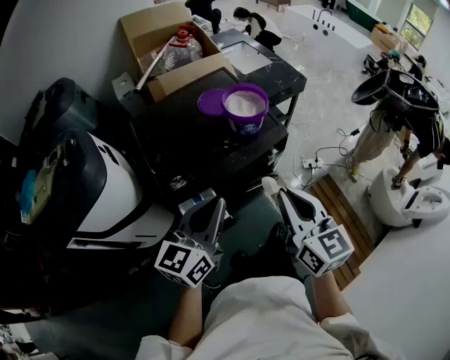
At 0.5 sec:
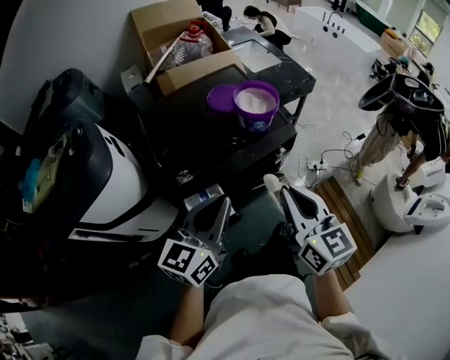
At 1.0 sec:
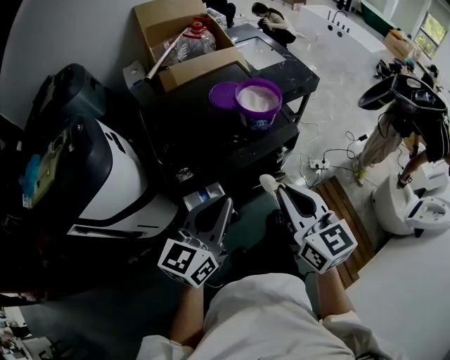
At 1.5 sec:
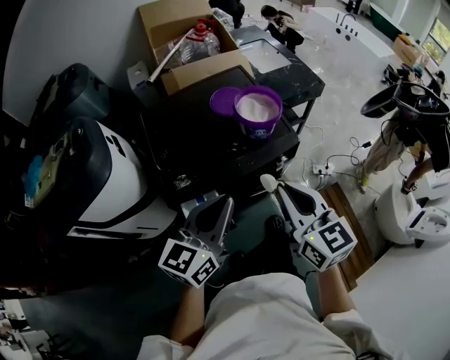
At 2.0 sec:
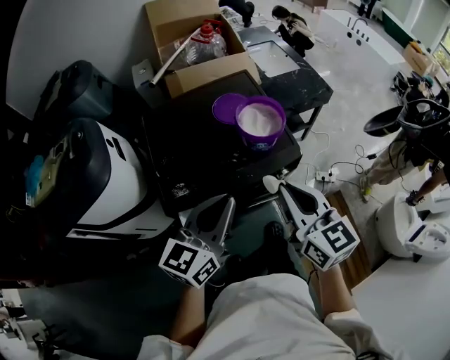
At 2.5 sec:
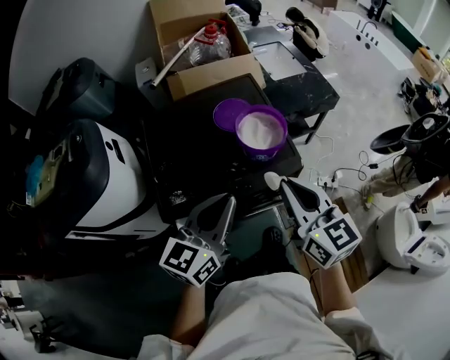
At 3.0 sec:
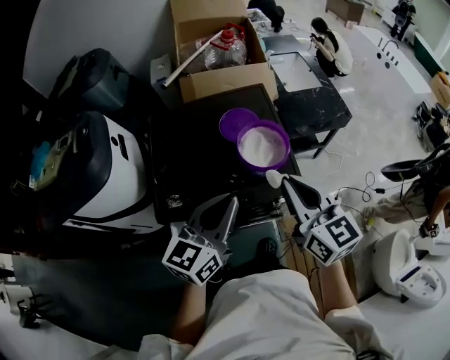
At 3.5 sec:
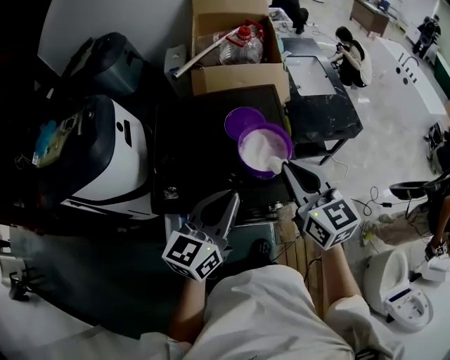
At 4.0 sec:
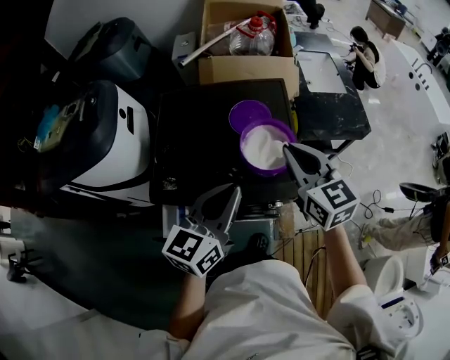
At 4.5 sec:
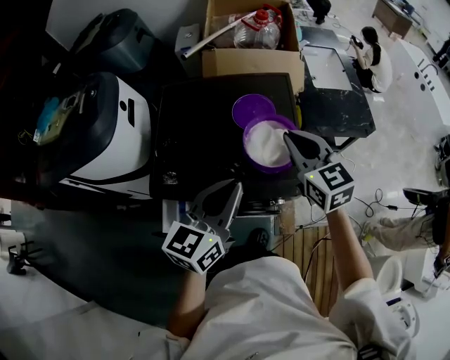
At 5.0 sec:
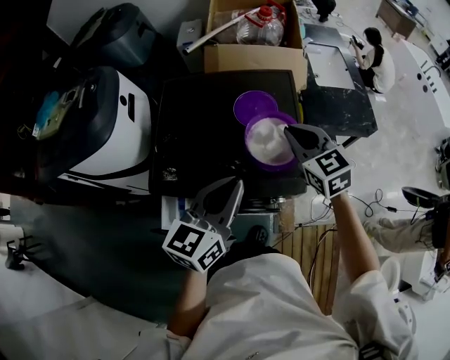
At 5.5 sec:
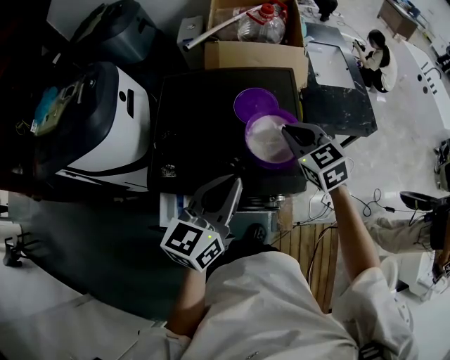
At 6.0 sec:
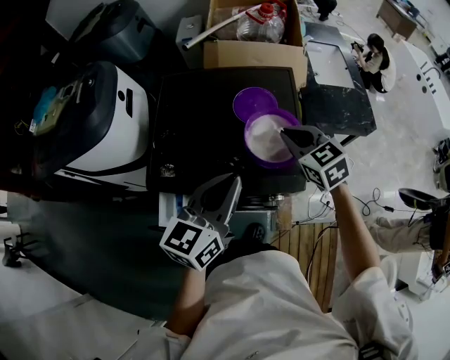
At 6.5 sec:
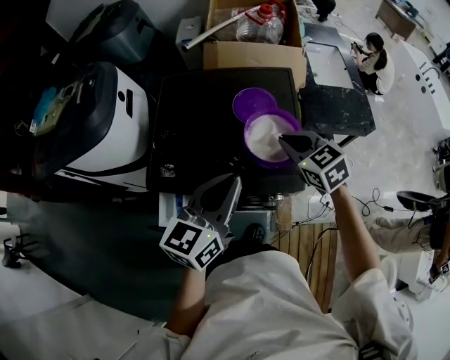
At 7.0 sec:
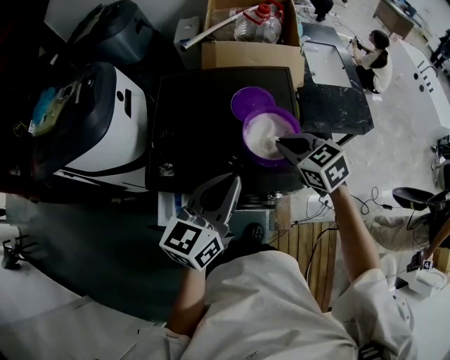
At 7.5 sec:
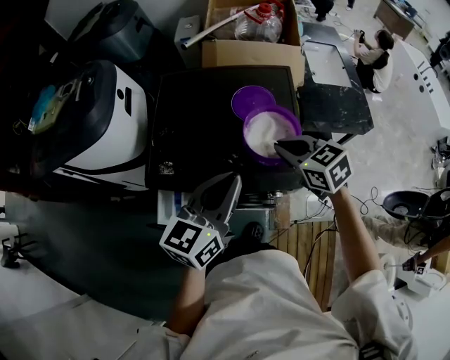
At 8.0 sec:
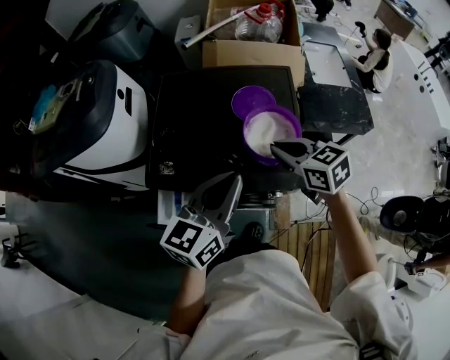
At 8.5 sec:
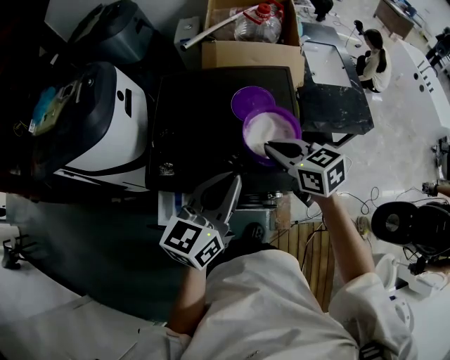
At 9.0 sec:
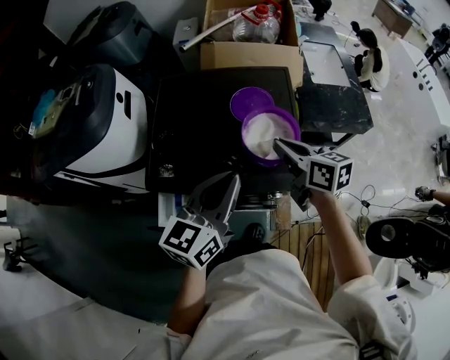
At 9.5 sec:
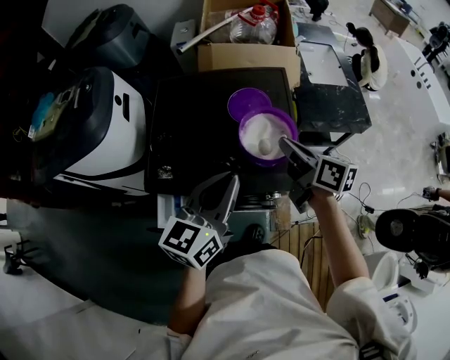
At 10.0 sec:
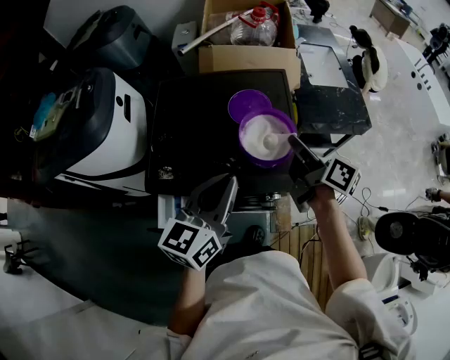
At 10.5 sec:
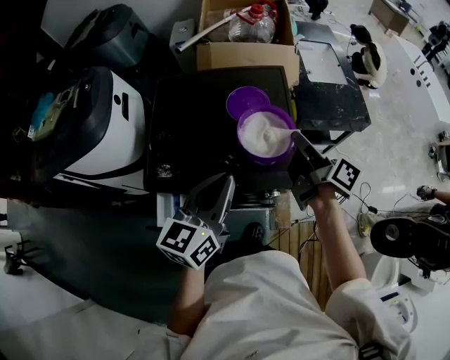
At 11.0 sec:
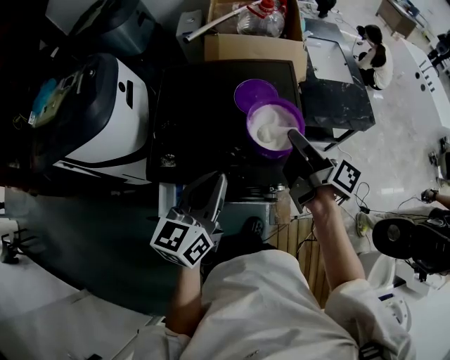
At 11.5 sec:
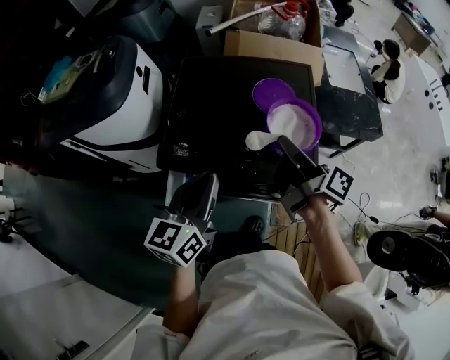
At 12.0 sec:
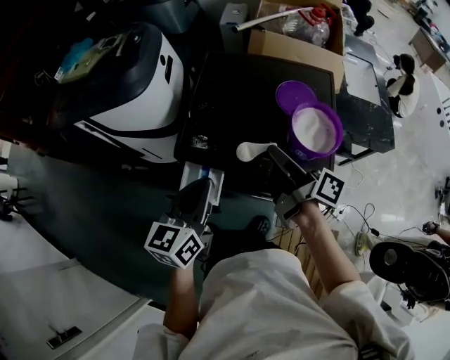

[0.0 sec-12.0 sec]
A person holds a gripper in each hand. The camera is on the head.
0.0 sec to 2.0 sec: Both grippers travel together forward, roughly 10 cm.
2.0 sec to 4.0 sec: The left gripper goes approximately 15 cm forward and to the right; the right gripper travels forward by about 20 cm, and rotates roughly 20 degrees.
4.0 sec to 6.0 sec: The right gripper goes some 10 cm downward and forward, and swivels roughly 30 degrees.
6.0 sec to 8.0 sec: The right gripper ends up roughly 5 cm from where it was.
8.0 sec to 10.0 sec: The right gripper travels to the right by about 10 cm, and twists roughly 50 degrees clockwise, seen from behind.
10.0 sec to 12.0 sec: Both grippers move to the left, approximately 20 cm. The right gripper swivels some 30 degrees.

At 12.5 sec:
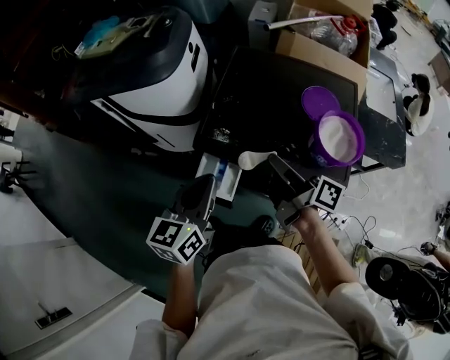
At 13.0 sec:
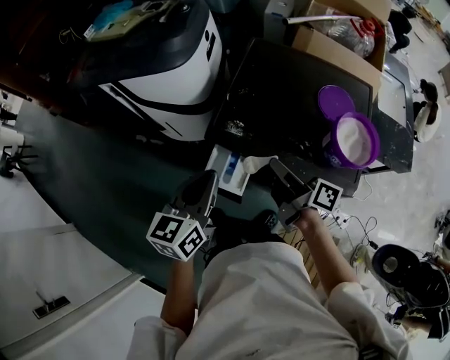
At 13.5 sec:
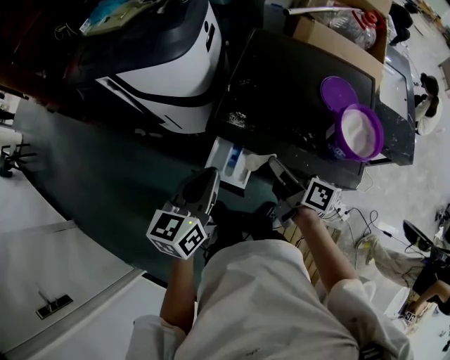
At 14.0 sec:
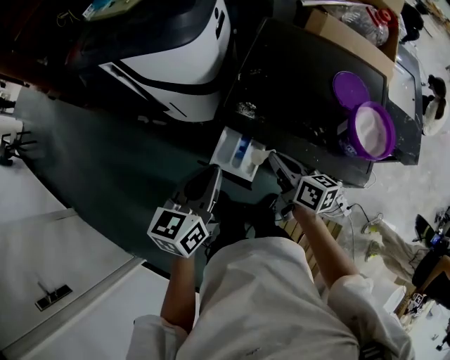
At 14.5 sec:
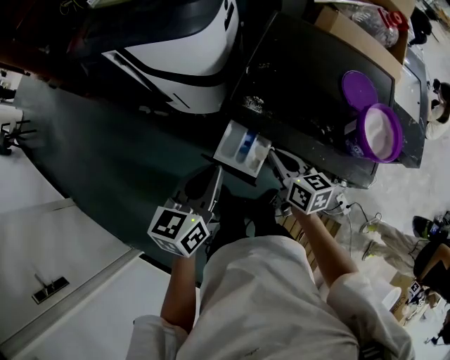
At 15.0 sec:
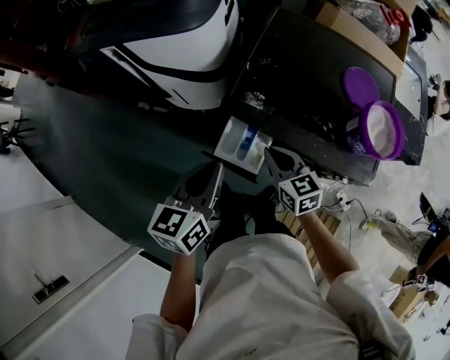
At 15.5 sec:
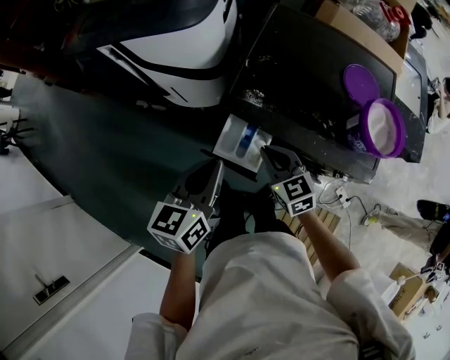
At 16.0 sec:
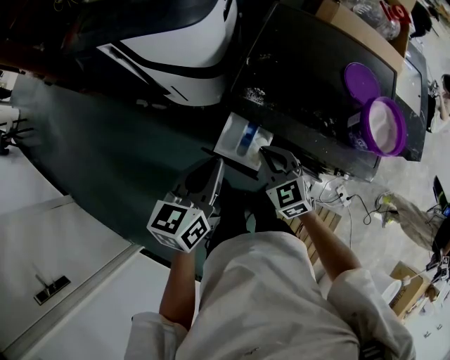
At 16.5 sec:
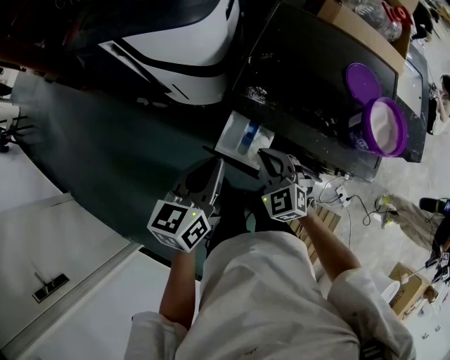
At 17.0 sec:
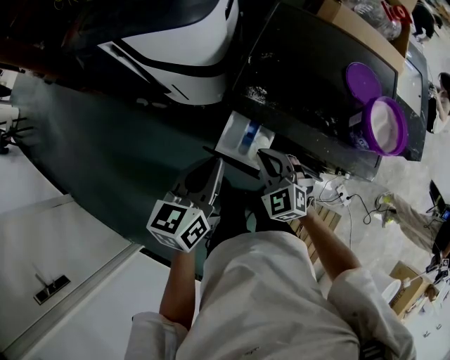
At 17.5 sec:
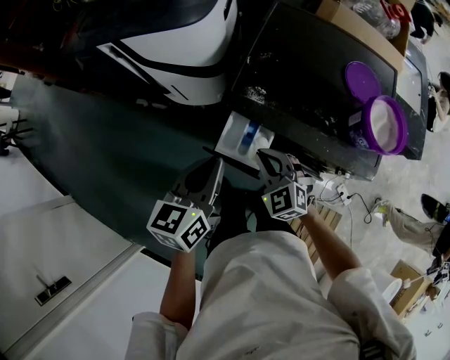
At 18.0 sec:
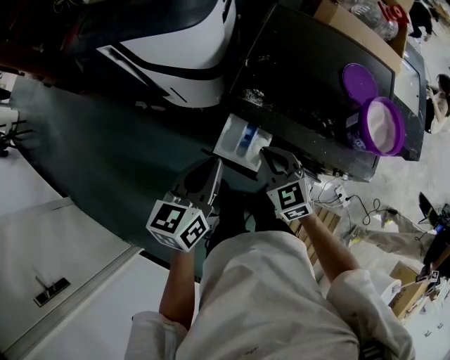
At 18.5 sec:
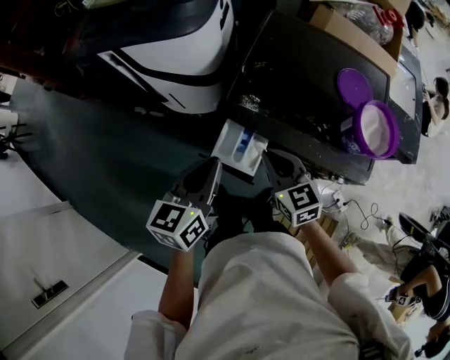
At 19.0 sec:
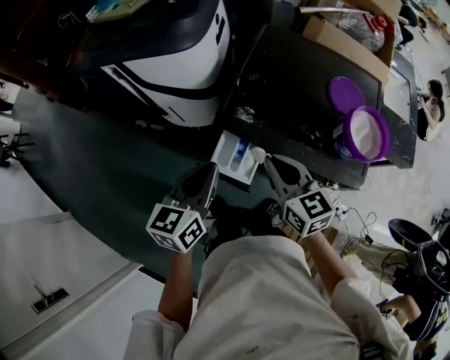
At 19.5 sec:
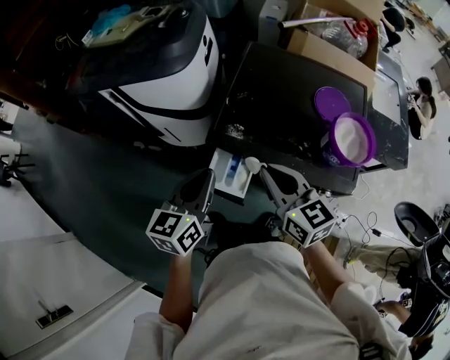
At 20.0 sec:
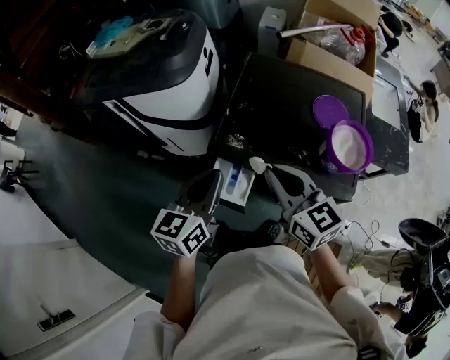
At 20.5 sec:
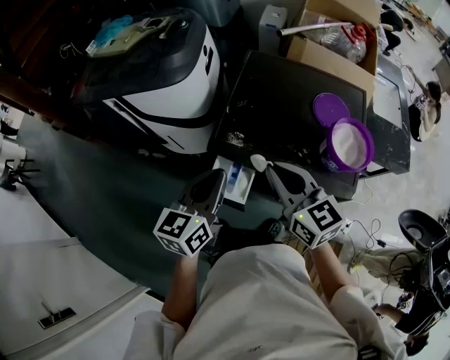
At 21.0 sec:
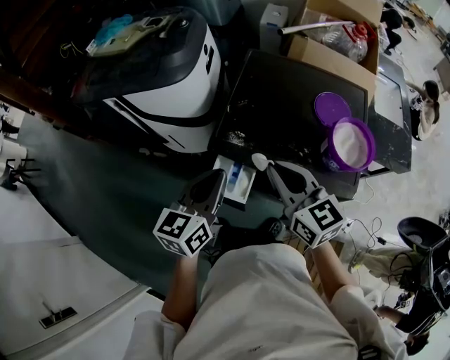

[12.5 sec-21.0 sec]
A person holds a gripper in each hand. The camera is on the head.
12.5 sec to 14.5 sec: The left gripper goes roughly 10 cm to the left. The right gripper moves downward and to the left, about 15 cm, and rolls counterclockwise, seen from behind, by about 40 degrees.
14.5 sec to 16.5 sec: The right gripper goes about 5 cm to the left, and rolls counterclockwise, seen from behind, by about 60 degrees.
16.5 sec to 19.0 sec: The right gripper shifts some 10 cm upward, and turns by some 40 degrees.
19.0 sec to 21.0 sec: The left gripper shifts by about 5 cm; the right gripper is displaced upward by roughly 10 cm.

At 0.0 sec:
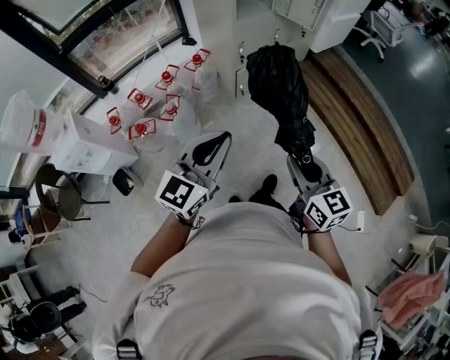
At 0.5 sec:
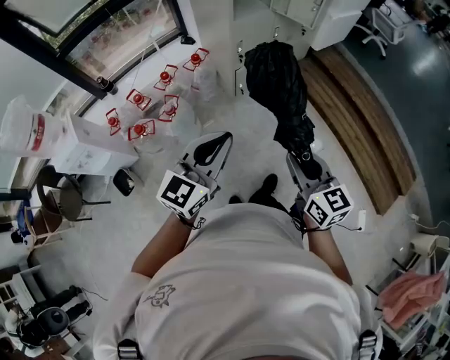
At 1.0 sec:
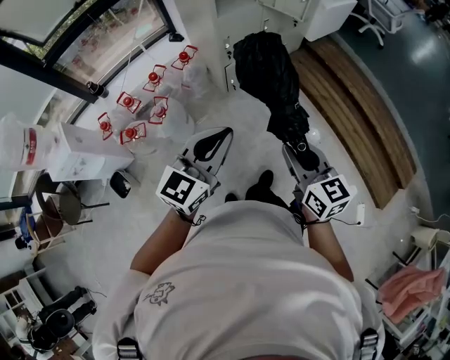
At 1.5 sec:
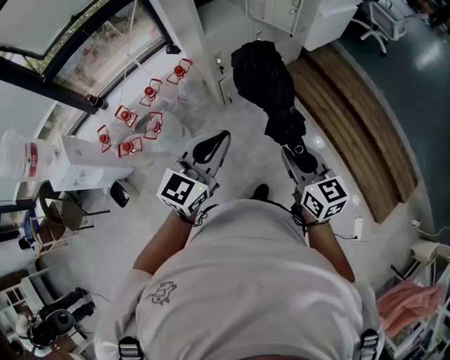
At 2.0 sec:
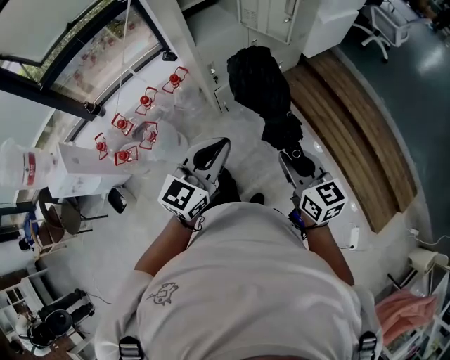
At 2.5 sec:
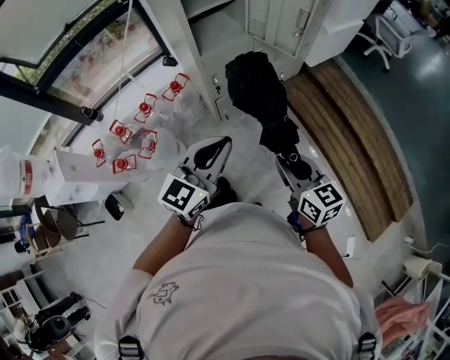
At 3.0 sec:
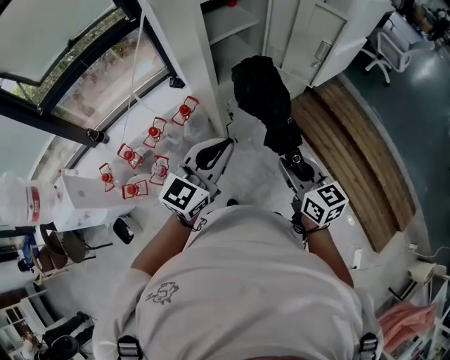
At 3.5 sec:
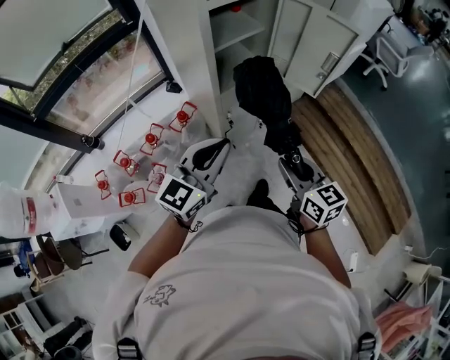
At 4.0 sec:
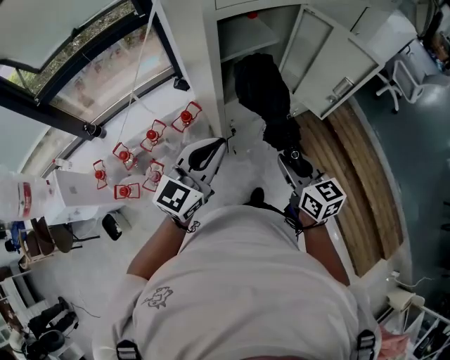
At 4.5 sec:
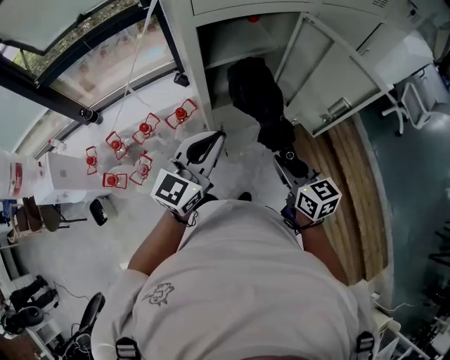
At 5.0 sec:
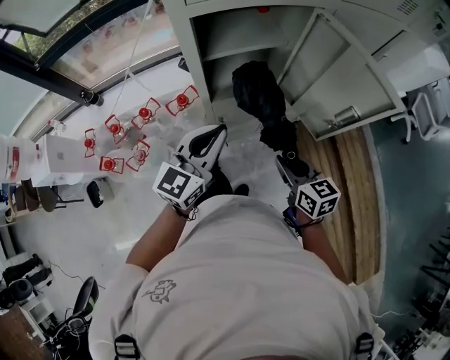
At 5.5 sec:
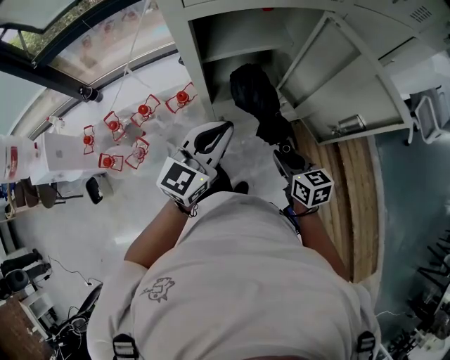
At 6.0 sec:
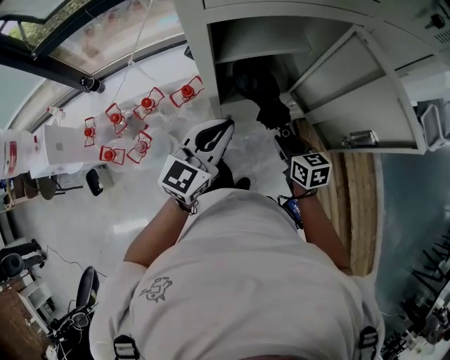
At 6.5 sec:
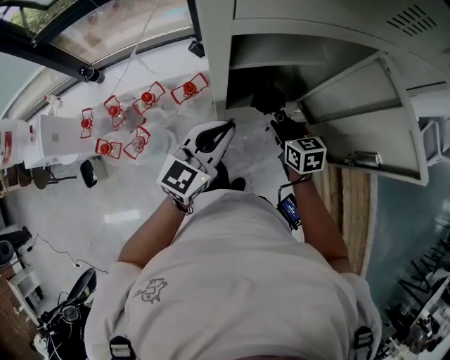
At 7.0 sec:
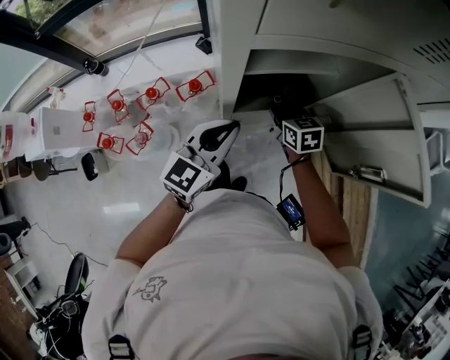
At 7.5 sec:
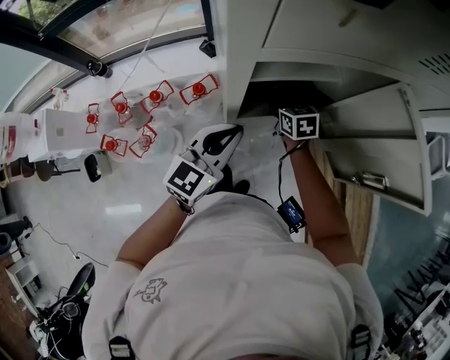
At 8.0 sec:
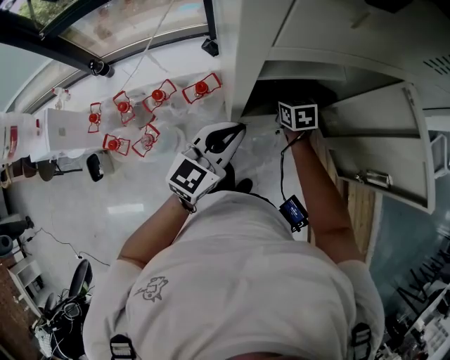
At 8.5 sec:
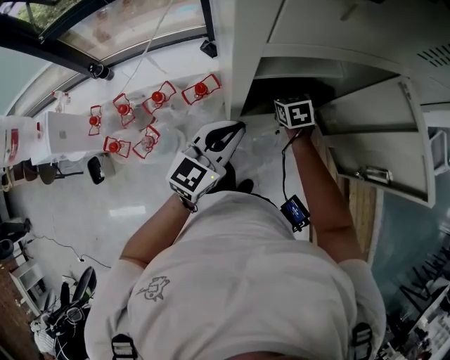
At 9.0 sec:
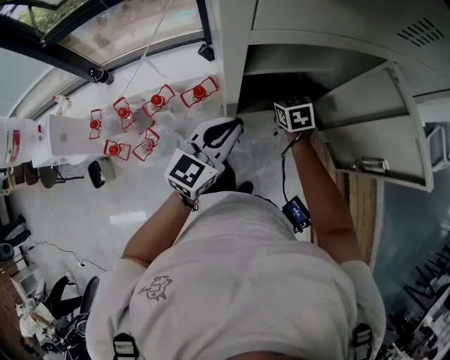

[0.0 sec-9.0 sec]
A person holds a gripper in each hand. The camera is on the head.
0.0 sec to 2.0 sec: The grippers both shift forward and to the right by about 30 cm.
2.0 sec to 4.5 sec: The two grippers go approximately 40 cm forward.
4.5 sec to 7.0 sec: The right gripper heads forward and downward, covering about 30 cm; the left gripper moves forward and downward, some 15 cm.
